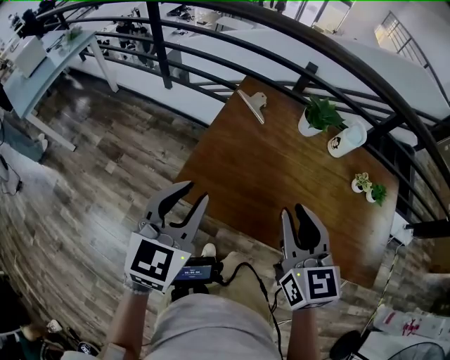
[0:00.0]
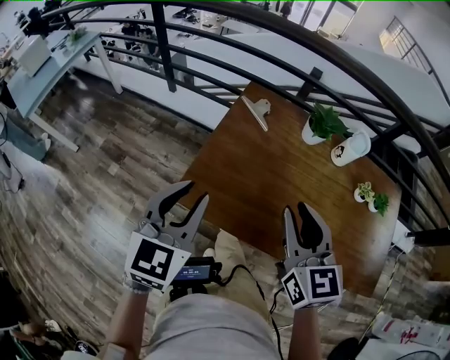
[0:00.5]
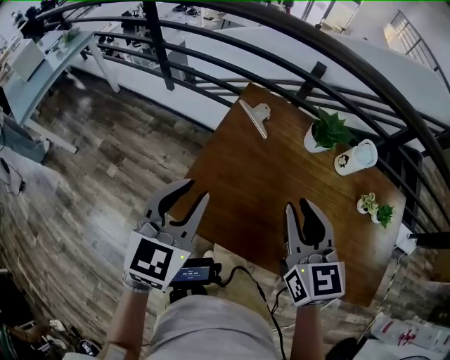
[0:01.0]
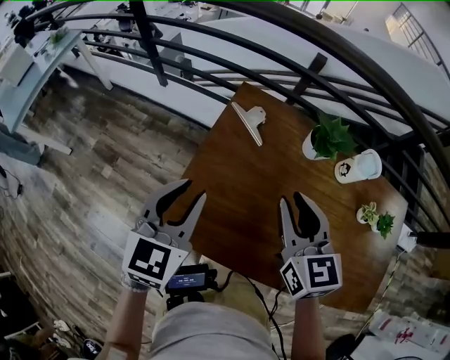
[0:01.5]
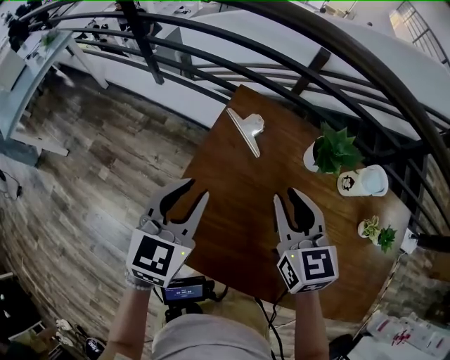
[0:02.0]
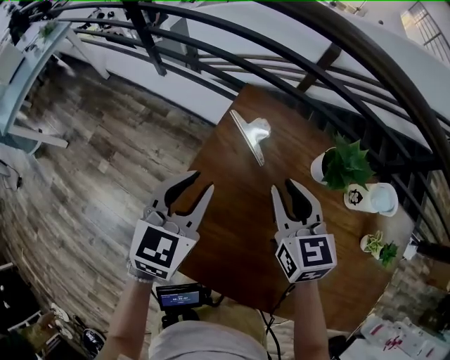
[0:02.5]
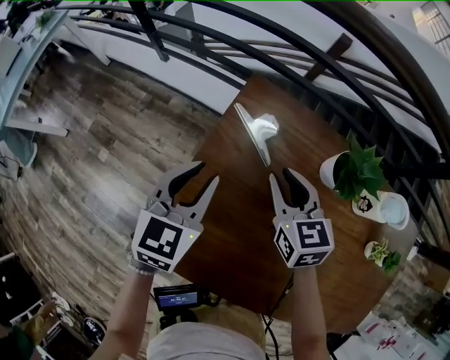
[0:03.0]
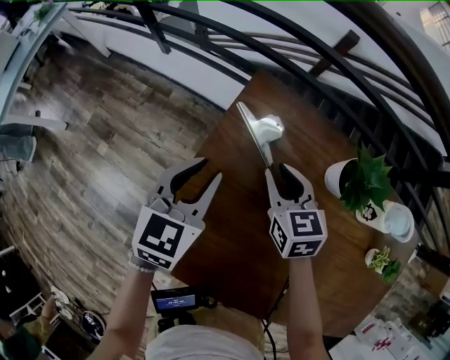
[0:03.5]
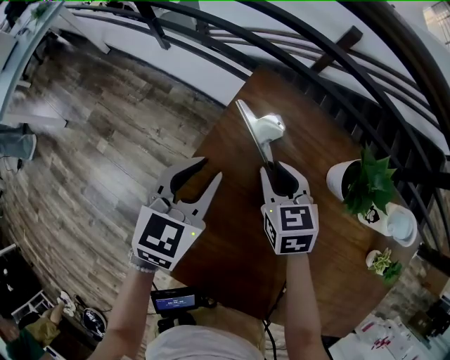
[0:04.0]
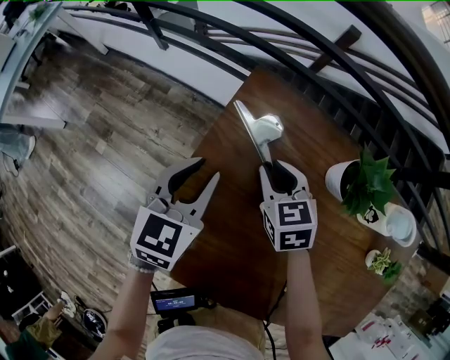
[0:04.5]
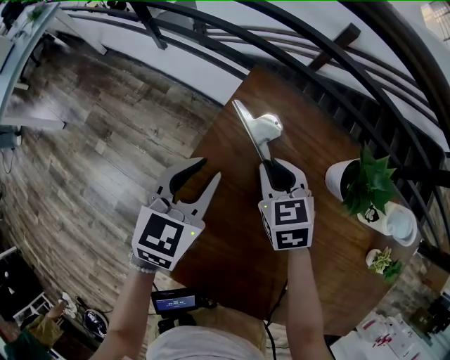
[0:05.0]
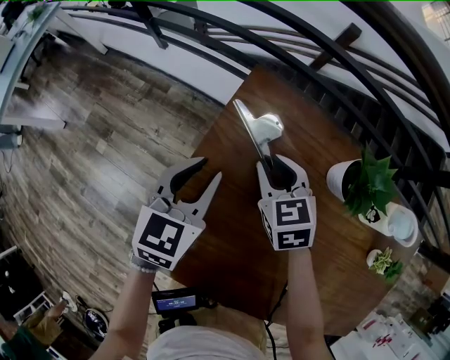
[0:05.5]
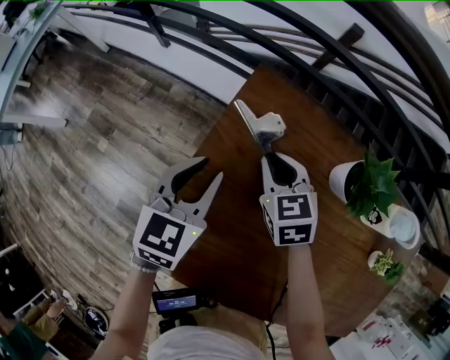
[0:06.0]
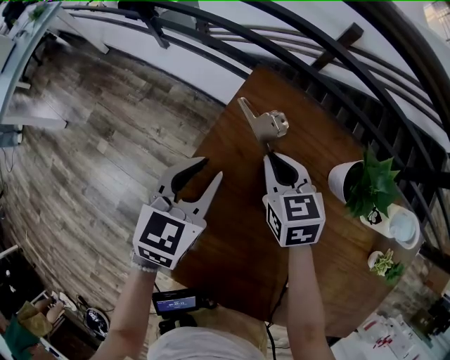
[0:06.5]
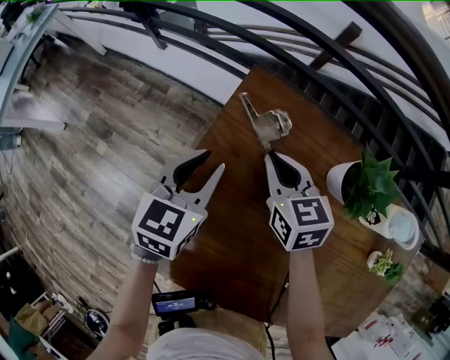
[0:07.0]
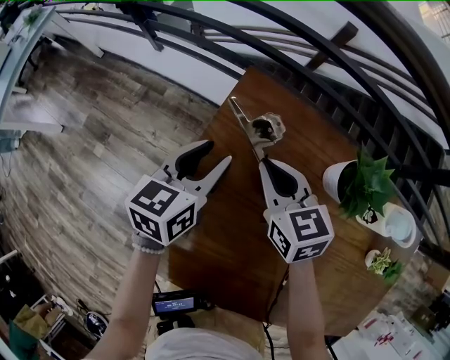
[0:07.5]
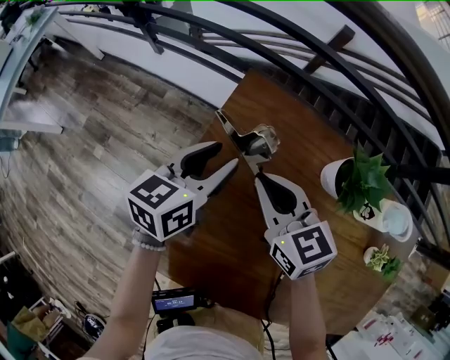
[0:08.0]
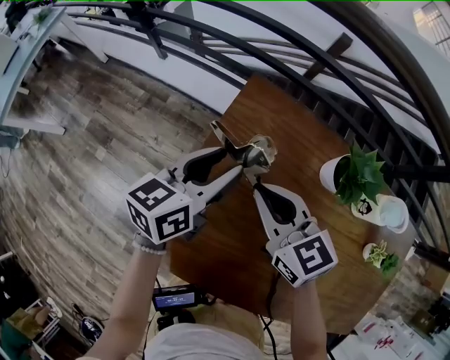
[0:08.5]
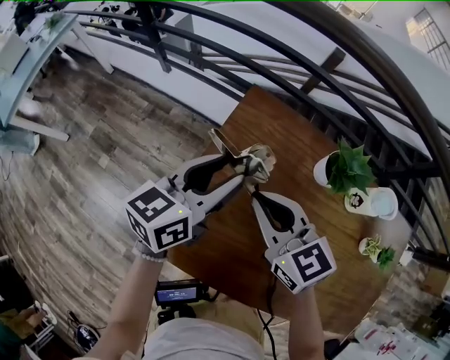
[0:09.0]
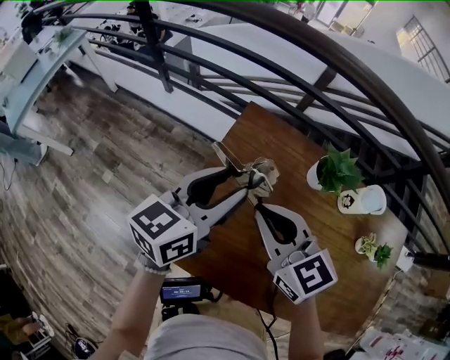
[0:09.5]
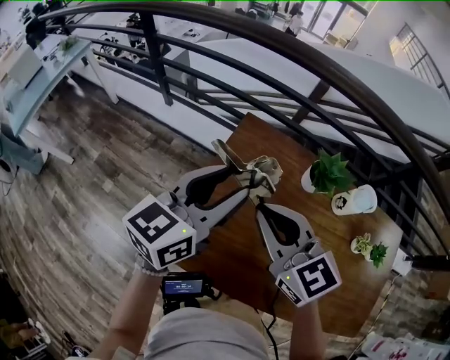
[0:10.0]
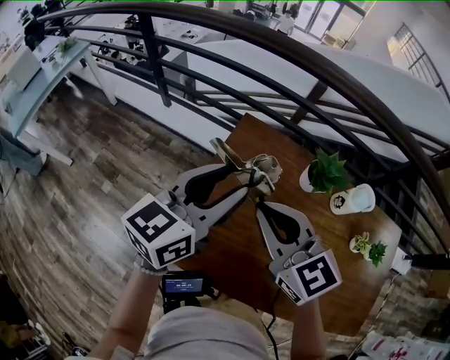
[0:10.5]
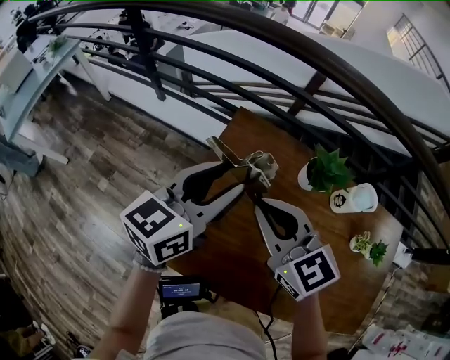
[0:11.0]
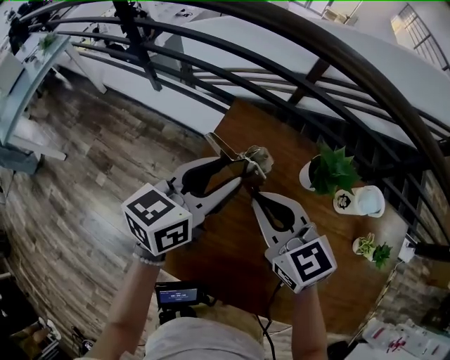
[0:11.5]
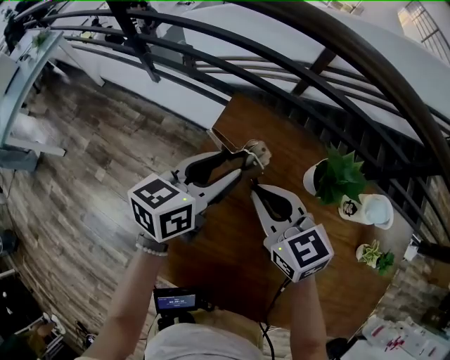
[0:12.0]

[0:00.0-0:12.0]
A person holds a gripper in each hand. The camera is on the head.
0:00.0 to 0:02.0: The grippers both shift forward by about 25 cm.
0:02.0 to 0:04.0: The right gripper shifts some 25 cm downward and forward, and changes its angle by some 20 degrees. The left gripper heads forward and downward, covering some 15 cm.
0:04.0 to 0:06.0: The grippers move only a little.
0:06.0 to 0:08.0: The left gripper changes its angle by roughly 30 degrees. Meanwhile the right gripper shifts some 10 cm upward.
0:08.0 to 0:10.0: The grippers both shift upward and backward by approximately 25 cm. The left gripper changes its angle by about 20 degrees.
0:10.0 to 0:12.0: The grippers both shift downward and forward by roughly 20 cm.

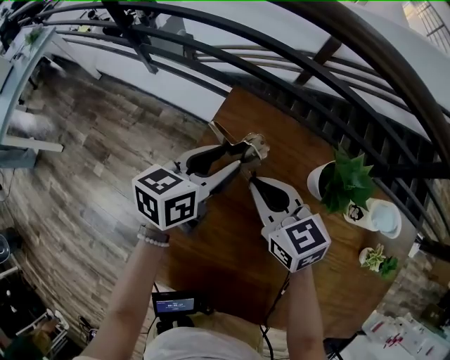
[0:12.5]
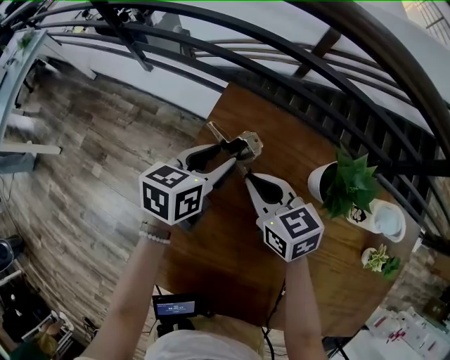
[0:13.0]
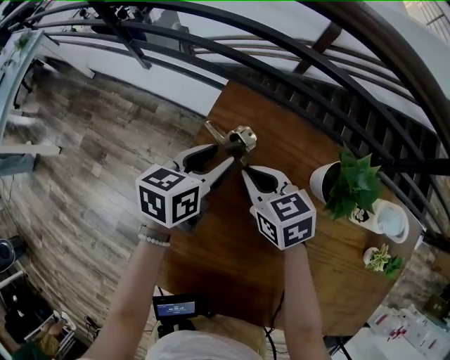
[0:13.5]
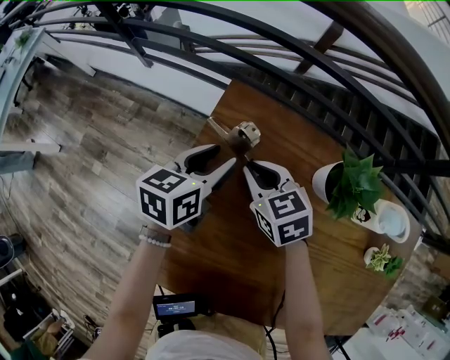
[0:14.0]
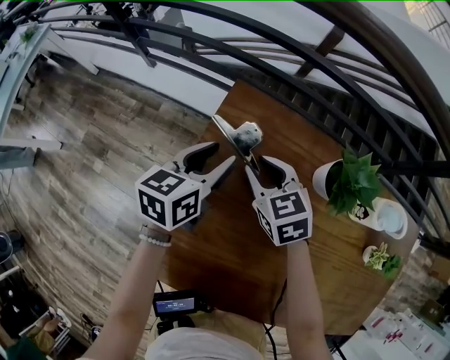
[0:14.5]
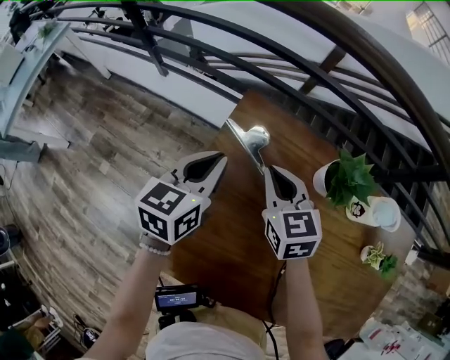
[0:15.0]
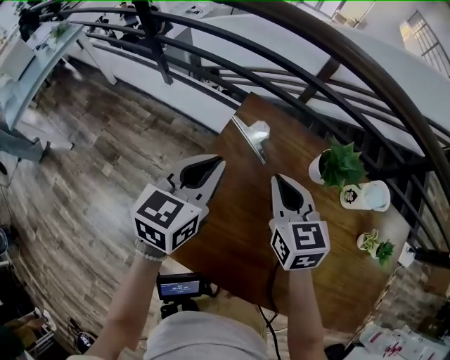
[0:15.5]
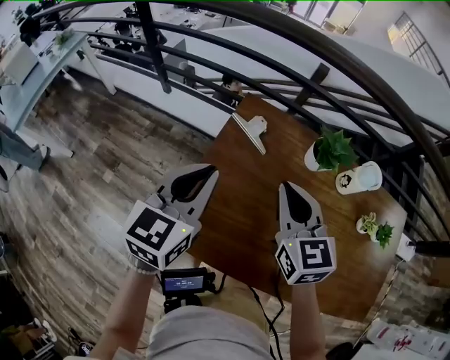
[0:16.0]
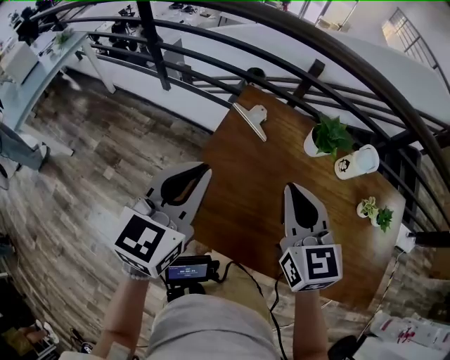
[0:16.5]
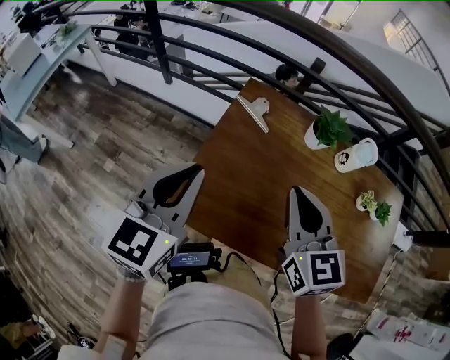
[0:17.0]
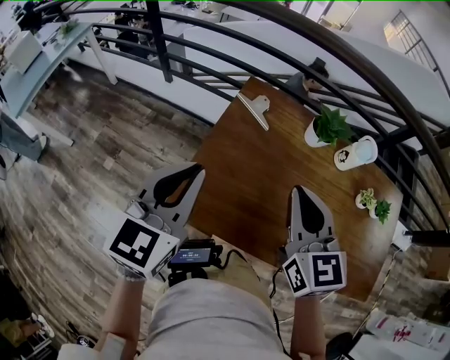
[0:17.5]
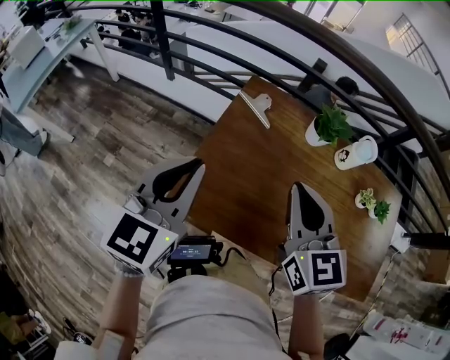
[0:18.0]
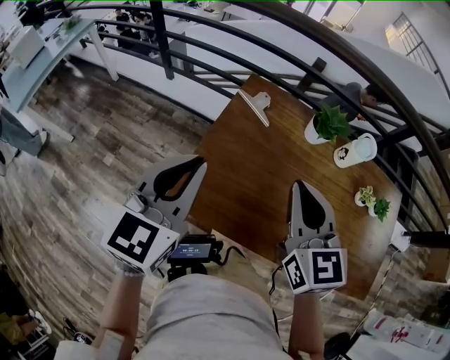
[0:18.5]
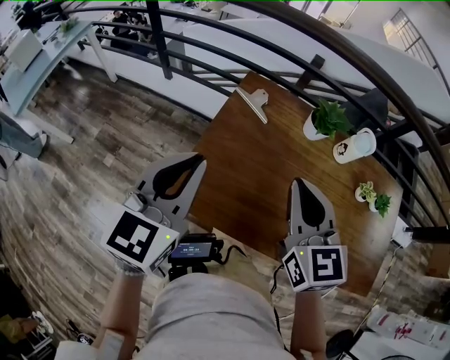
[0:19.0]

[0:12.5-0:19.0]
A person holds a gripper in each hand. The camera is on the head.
0:12.5 to 0:14.5: The right gripper goes approximately 5 cm downward, and opens its fingers.
0:14.5 to 0:17.0: Both grippers move backward and upward, roughly 40 cm. The right gripper turns by about 30 degrees, and closes; the left gripper changes its angle by roughly 30 degrees, and closes up.
0:17.0 to 0:19.0: The grippers move only a little.

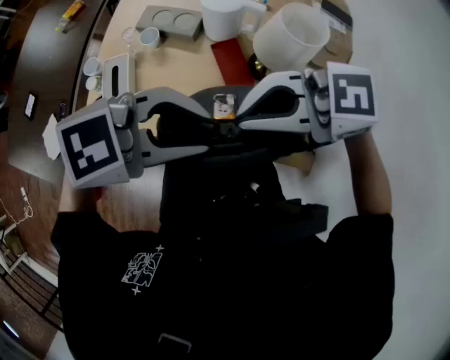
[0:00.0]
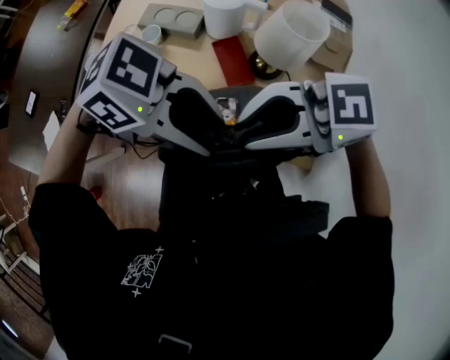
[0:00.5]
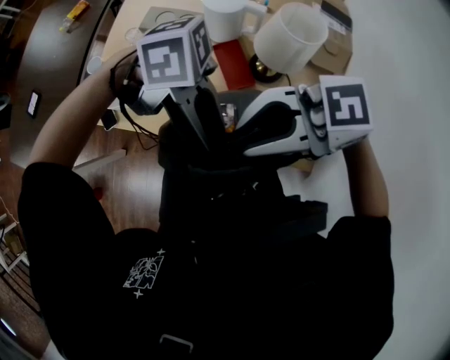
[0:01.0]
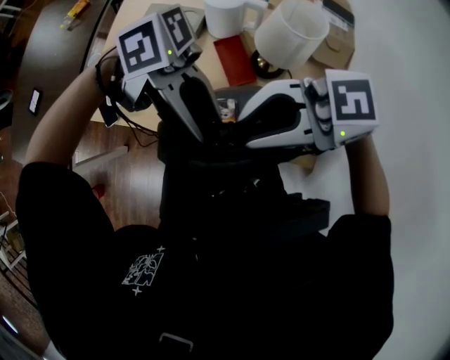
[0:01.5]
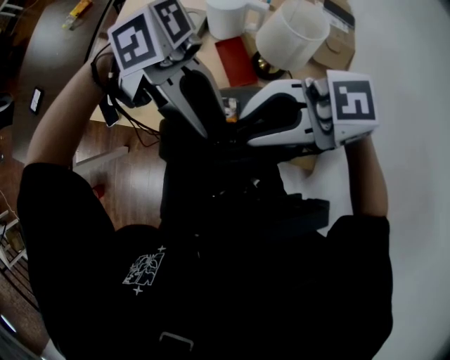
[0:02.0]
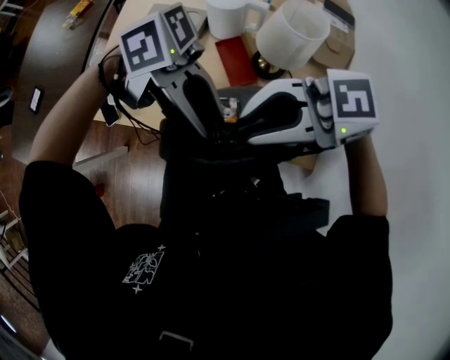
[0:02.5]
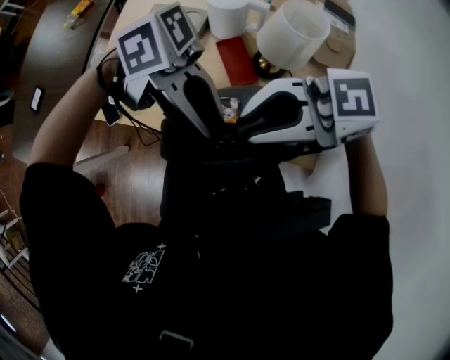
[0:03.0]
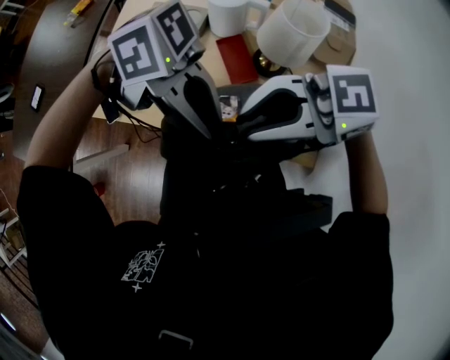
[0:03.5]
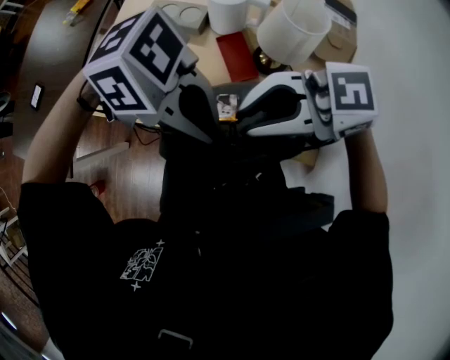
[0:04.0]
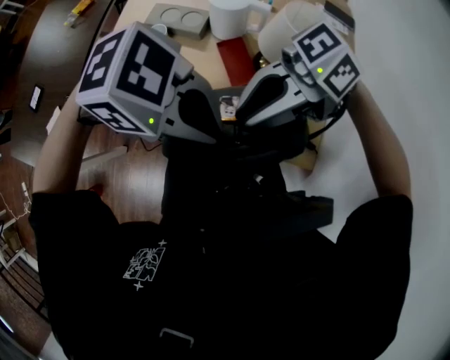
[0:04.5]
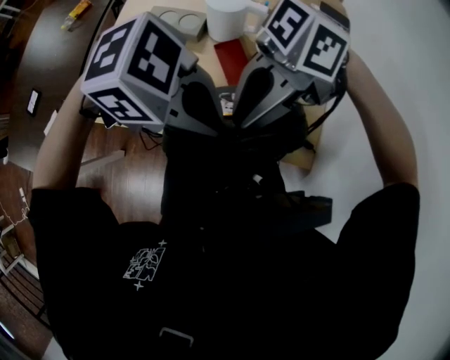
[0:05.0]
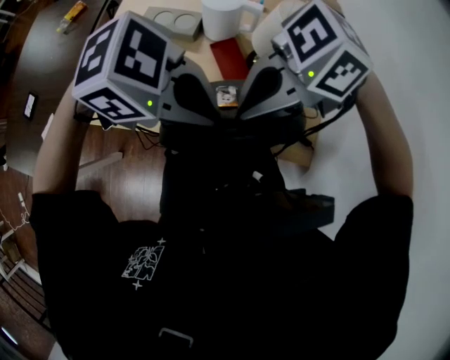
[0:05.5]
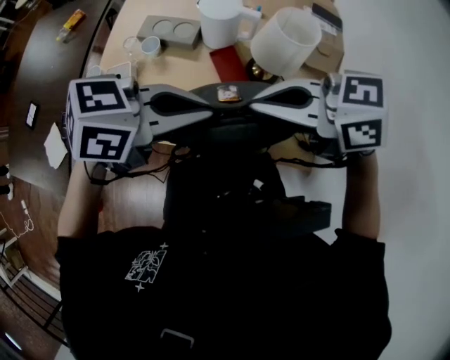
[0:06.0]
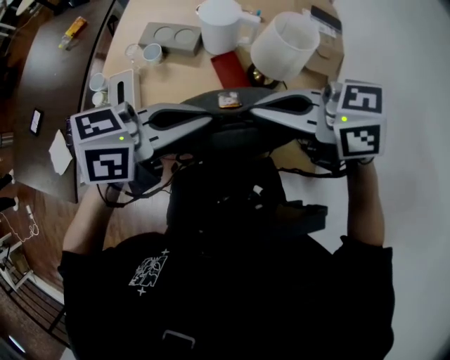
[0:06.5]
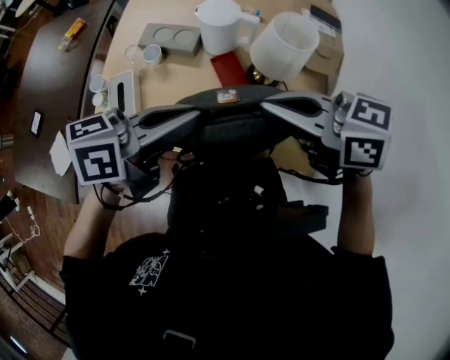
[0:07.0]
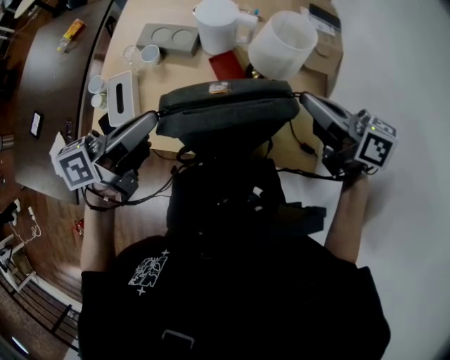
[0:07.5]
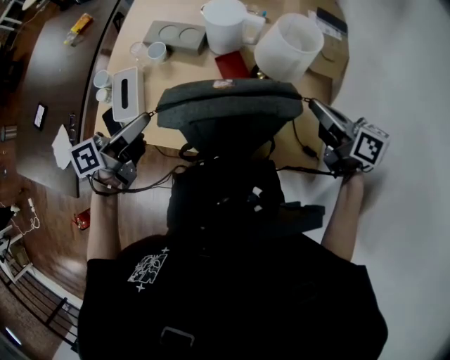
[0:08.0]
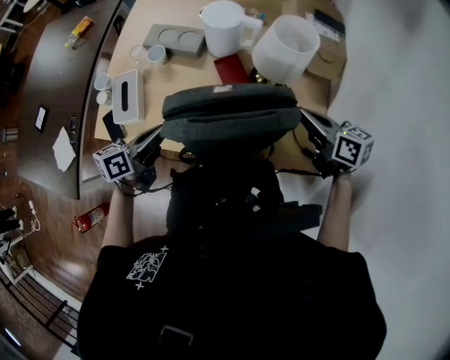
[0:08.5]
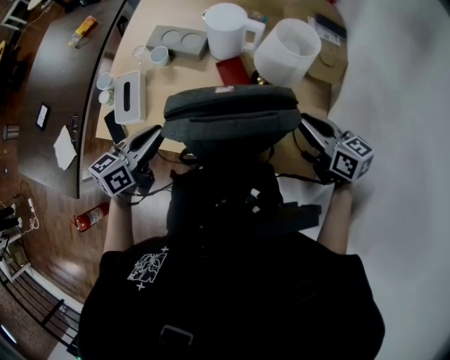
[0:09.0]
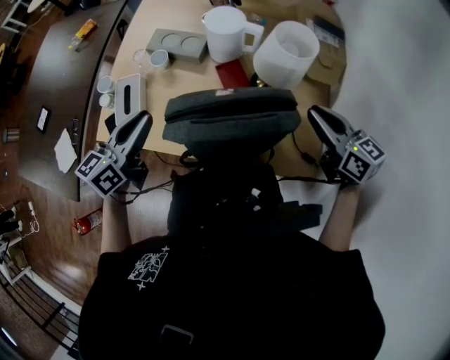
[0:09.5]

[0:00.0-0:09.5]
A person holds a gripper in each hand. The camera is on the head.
0:00.0 to 0:02.0: The right gripper opens up. The left gripper rotates some 60 degrees.
0:02.0 to 0:04.0: The left gripper swivels approximately 20 degrees, and closes its fingers.
0:04.0 to 0:05.5: The right gripper rotates approximately 30 degrees, and closes up.
0:05.5 to 0:07.5: The right gripper moves about 20 cm, and changes its angle by approximately 80 degrees. Meanwhile the left gripper moves approximately 15 cm, and tips its fingers upward by roughly 30 degrees.
0:07.5 to 0:09.5: The left gripper goes about 10 cm downward and to the left, and changes its angle by roughly 30 degrees. The right gripper is displaced downward and to the right by approximately 10 cm, and opens.
